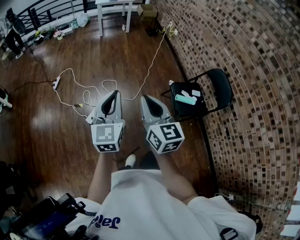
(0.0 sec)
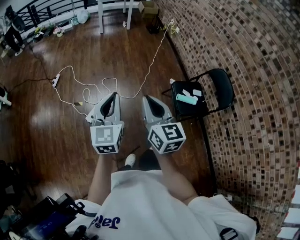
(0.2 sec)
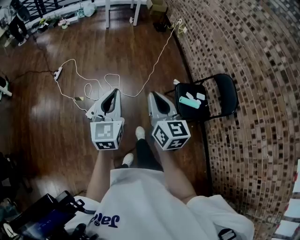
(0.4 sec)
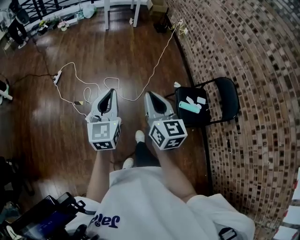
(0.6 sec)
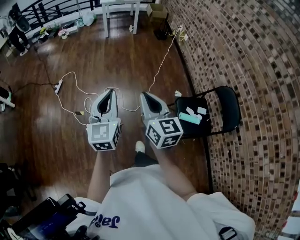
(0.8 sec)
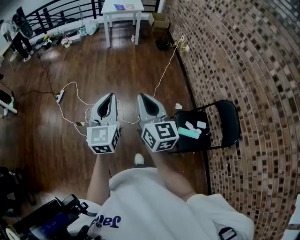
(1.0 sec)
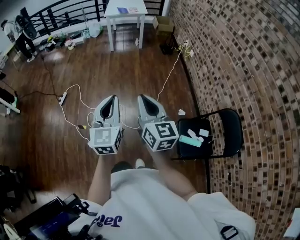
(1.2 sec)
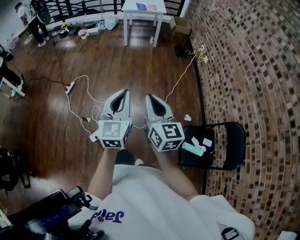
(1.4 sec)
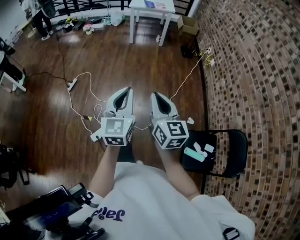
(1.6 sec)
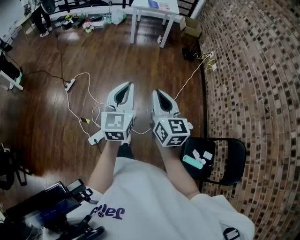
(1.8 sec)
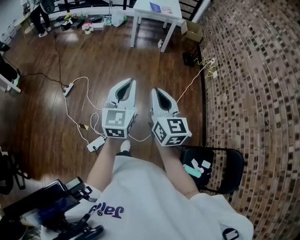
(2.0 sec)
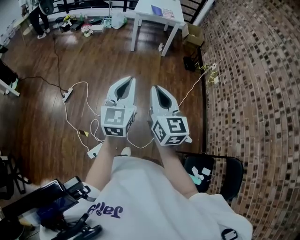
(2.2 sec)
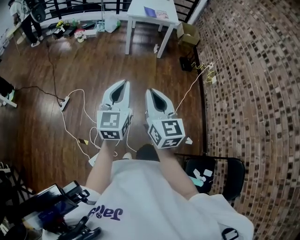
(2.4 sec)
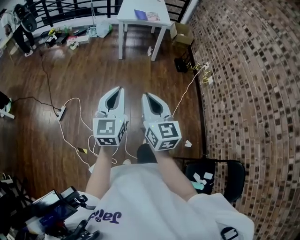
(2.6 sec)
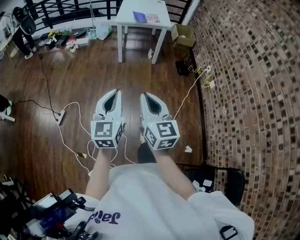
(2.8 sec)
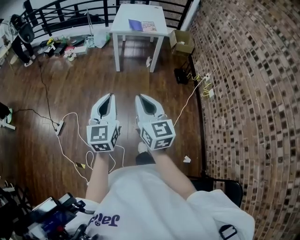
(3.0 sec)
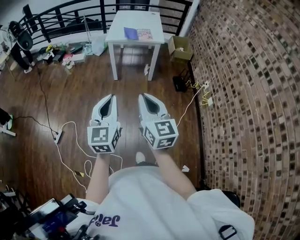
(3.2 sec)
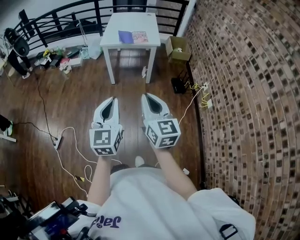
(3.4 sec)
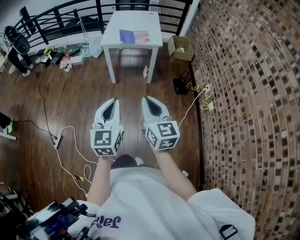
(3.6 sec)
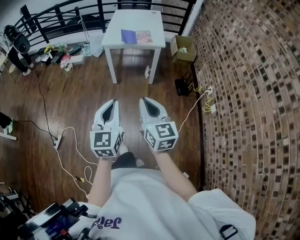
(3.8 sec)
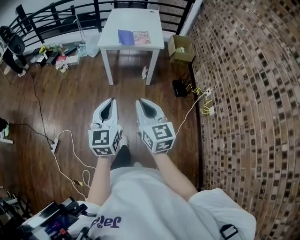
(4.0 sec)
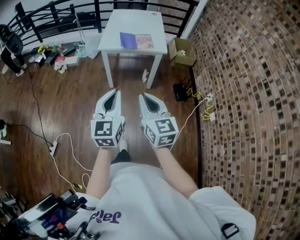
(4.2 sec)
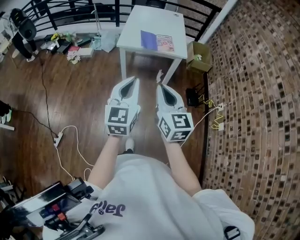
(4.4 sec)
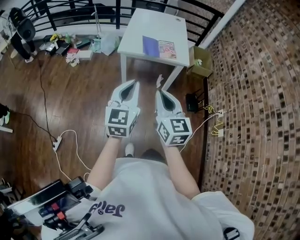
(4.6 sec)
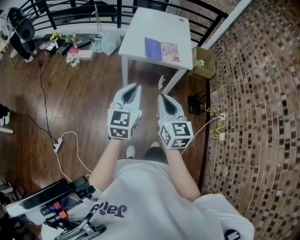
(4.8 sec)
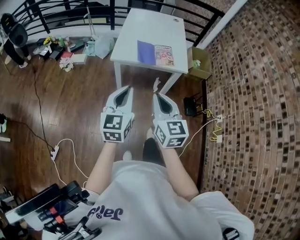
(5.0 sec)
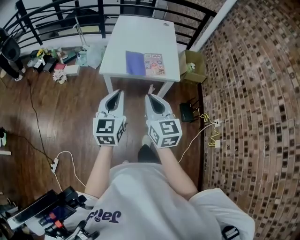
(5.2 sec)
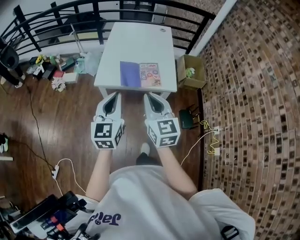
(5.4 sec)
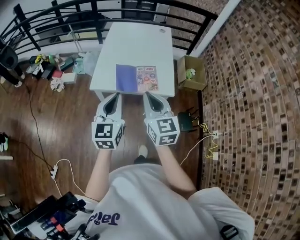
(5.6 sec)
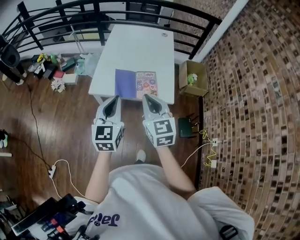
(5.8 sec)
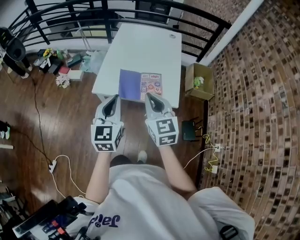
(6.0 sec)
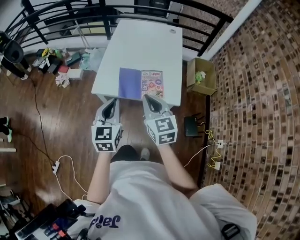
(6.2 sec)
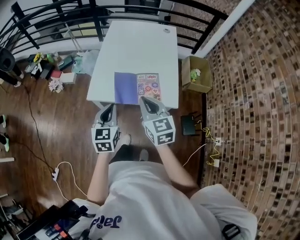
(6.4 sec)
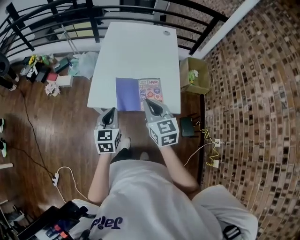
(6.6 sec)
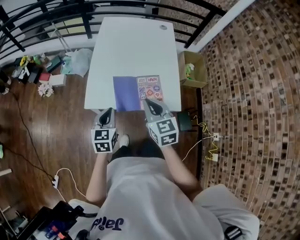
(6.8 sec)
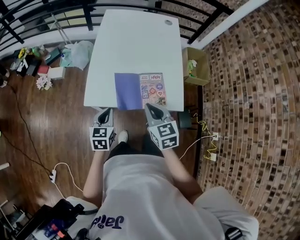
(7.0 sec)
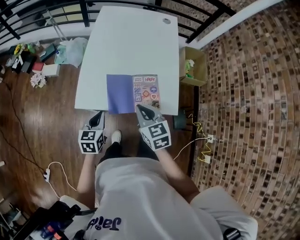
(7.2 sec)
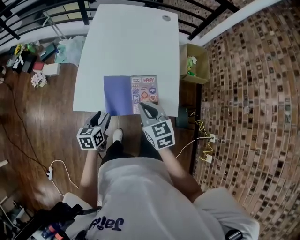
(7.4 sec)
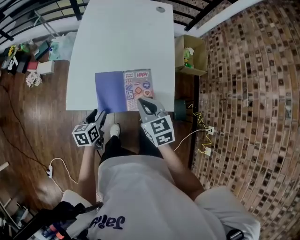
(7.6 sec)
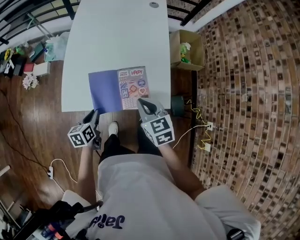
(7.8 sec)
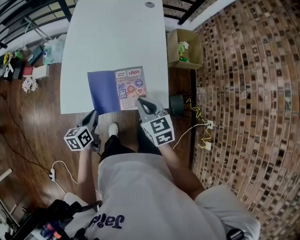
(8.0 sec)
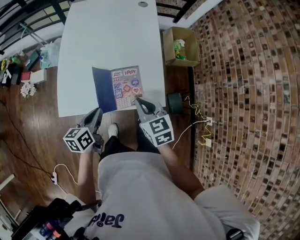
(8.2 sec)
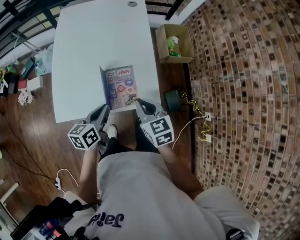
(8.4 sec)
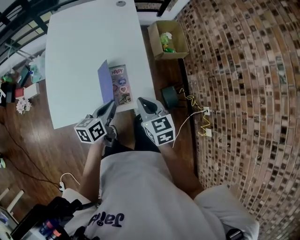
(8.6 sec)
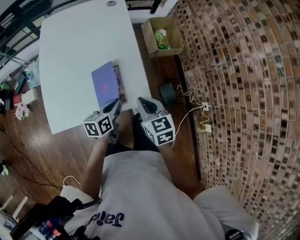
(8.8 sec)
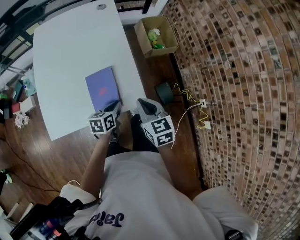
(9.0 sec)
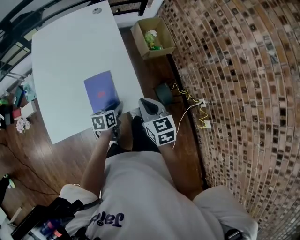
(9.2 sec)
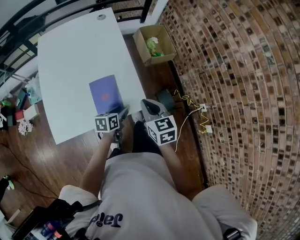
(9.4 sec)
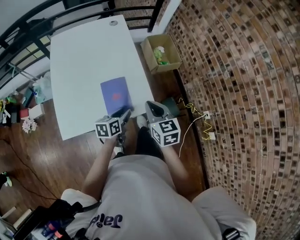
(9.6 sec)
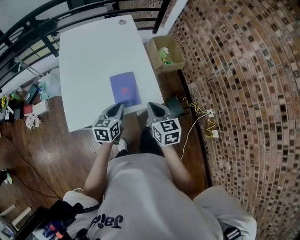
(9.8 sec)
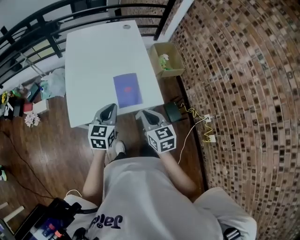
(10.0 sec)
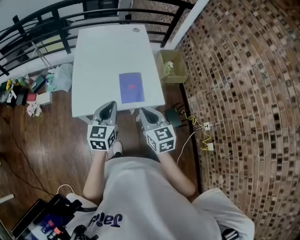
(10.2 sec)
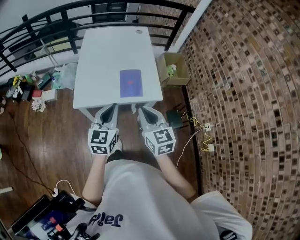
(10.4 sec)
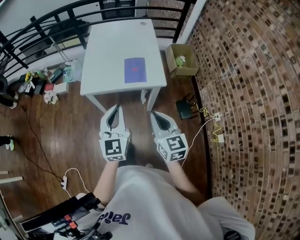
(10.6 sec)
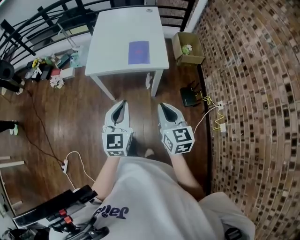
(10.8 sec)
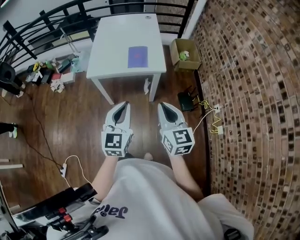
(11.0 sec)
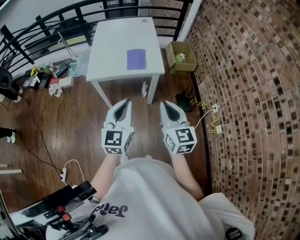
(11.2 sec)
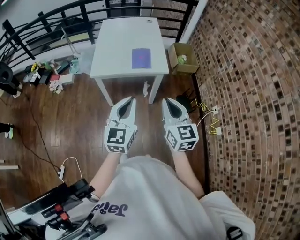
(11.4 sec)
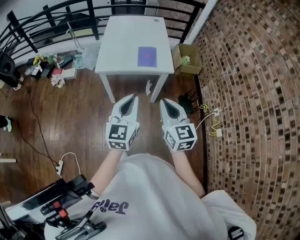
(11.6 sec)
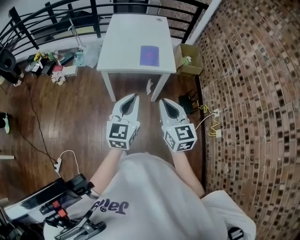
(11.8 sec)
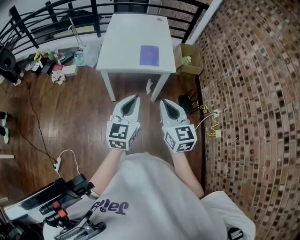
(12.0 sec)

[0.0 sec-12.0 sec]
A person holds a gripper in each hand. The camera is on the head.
0.0 sec to 1.6 sec: The two grippers go roughly 40 cm forward.
1.6 sec to 3.0 sec: Both grippers are carried forward, about 50 cm.
3.0 sec to 4.4 sec: Both grippers are carried forward, roughly 40 cm.
4.4 sec to 6.0 sec: The grippers both shift forward by roughly 40 cm.
6.0 sec to 7.6 sec: The two grippers go some 25 cm downward and forward. The right gripper turns by roughly 20 degrees. The left gripper angles its fingers downward, by about 30 degrees, and opens up.
7.6 sec to 9.0 sec: The left gripper goes upward and returns, some 10 cm each way, swivels about 30 degrees, and closes. Meanwhile the right gripper changes place by about 15 cm, and swivels approximately 20 degrees.
9.0 sec to 10.4 sec: The right gripper goes approximately 25 cm backward, upward and to the left, and changes its angle by approximately 20 degrees. Meanwhile the left gripper moves upward, backward and to the left, some 35 cm, swivels approximately 50 degrees, and opens, then closes once more.
10.4 sec to 12.0 sec: Both grippers travel together backward, some 25 cm.

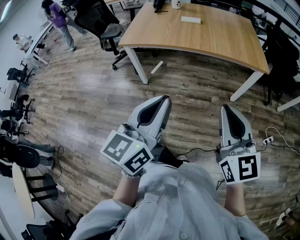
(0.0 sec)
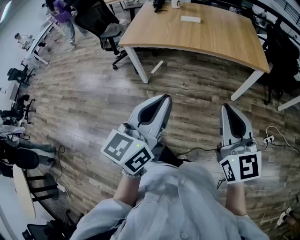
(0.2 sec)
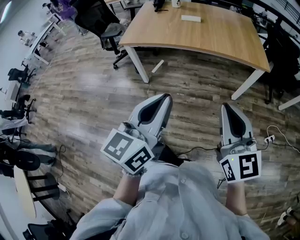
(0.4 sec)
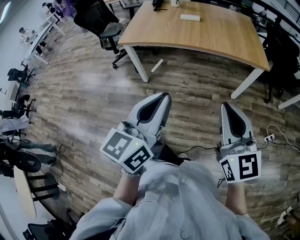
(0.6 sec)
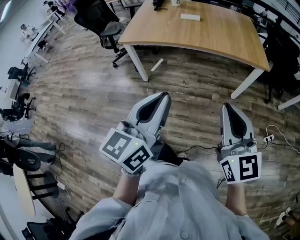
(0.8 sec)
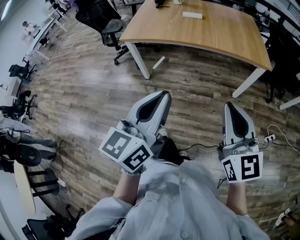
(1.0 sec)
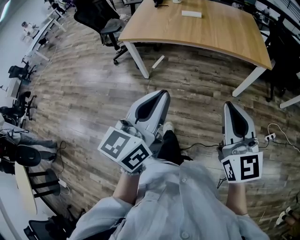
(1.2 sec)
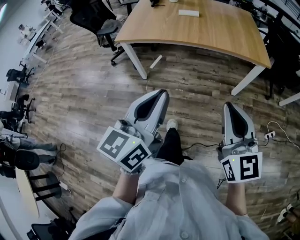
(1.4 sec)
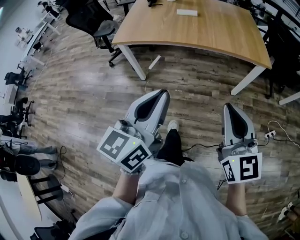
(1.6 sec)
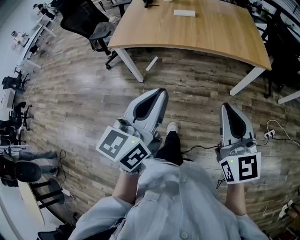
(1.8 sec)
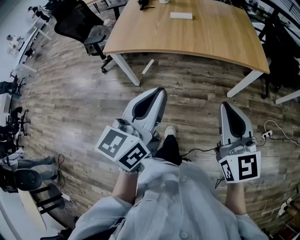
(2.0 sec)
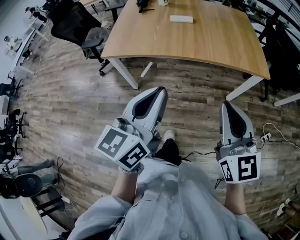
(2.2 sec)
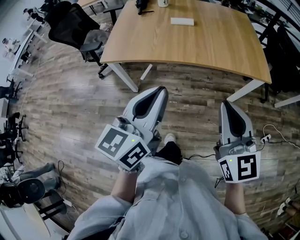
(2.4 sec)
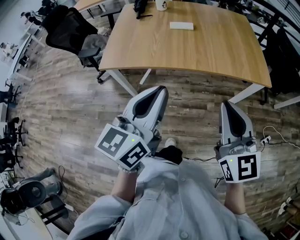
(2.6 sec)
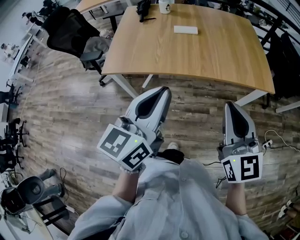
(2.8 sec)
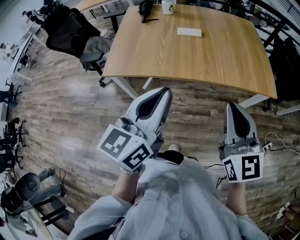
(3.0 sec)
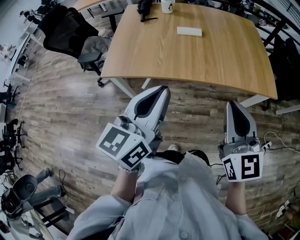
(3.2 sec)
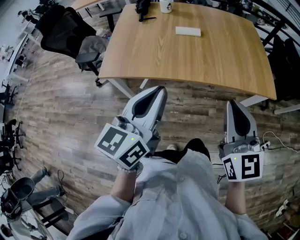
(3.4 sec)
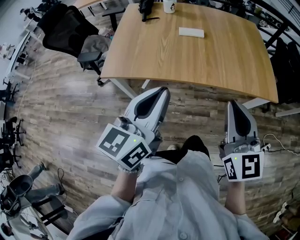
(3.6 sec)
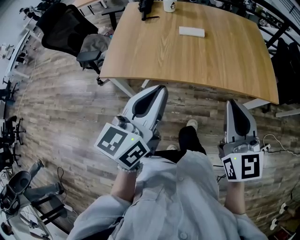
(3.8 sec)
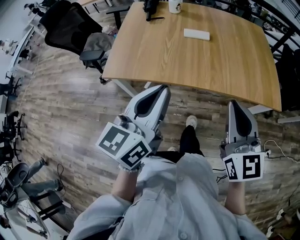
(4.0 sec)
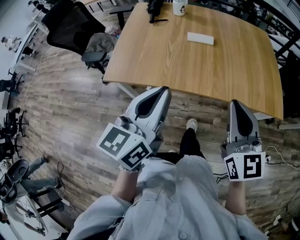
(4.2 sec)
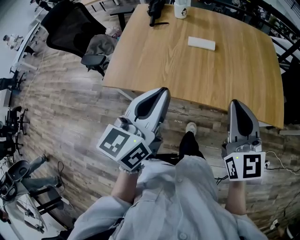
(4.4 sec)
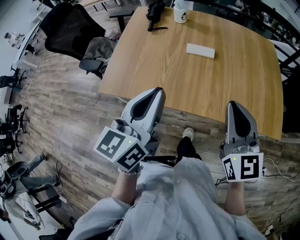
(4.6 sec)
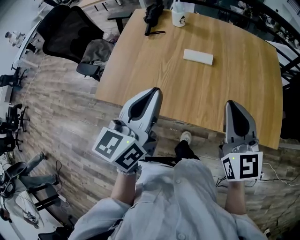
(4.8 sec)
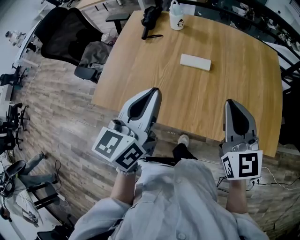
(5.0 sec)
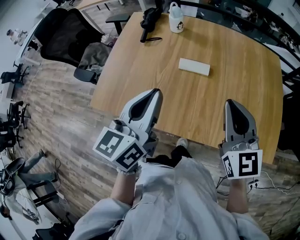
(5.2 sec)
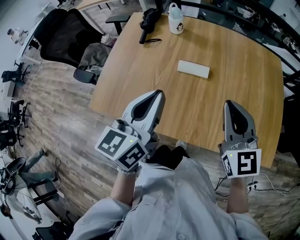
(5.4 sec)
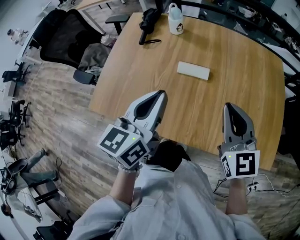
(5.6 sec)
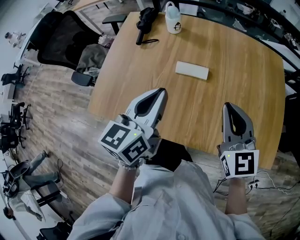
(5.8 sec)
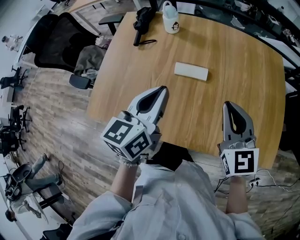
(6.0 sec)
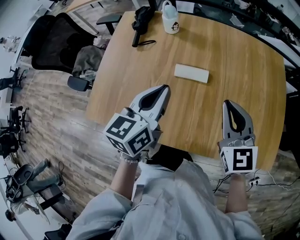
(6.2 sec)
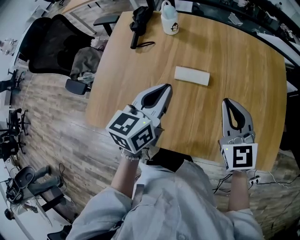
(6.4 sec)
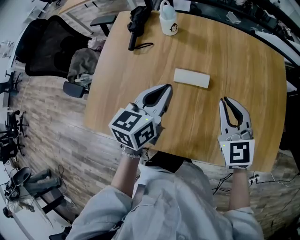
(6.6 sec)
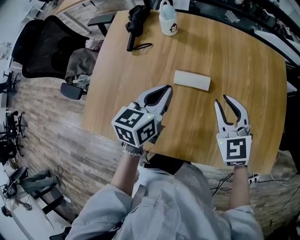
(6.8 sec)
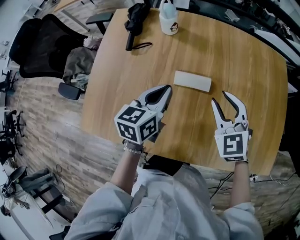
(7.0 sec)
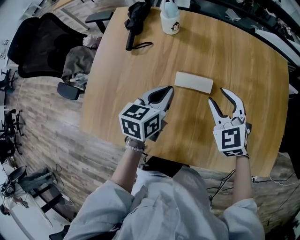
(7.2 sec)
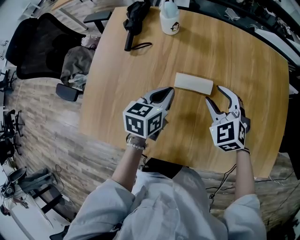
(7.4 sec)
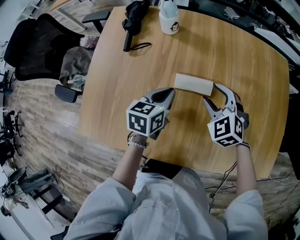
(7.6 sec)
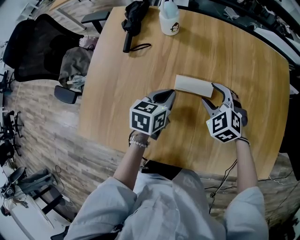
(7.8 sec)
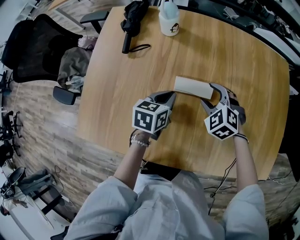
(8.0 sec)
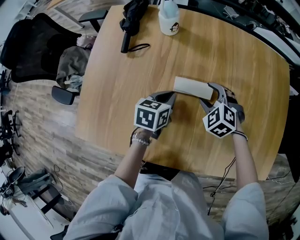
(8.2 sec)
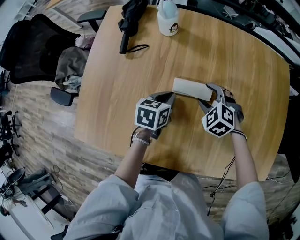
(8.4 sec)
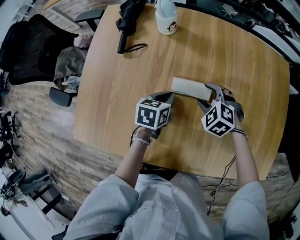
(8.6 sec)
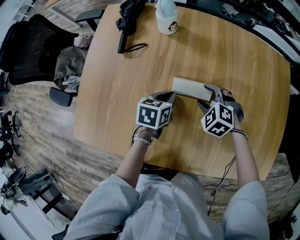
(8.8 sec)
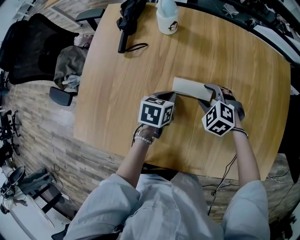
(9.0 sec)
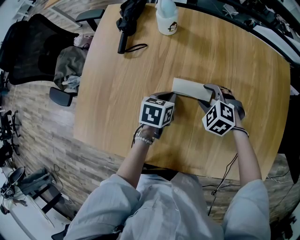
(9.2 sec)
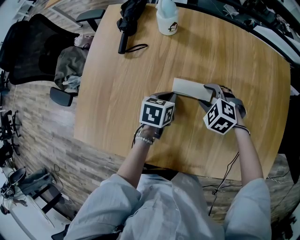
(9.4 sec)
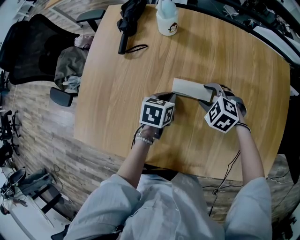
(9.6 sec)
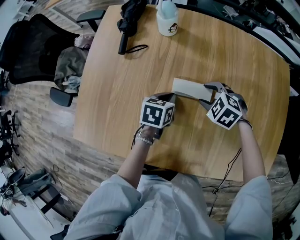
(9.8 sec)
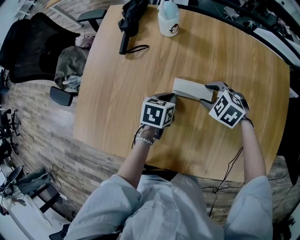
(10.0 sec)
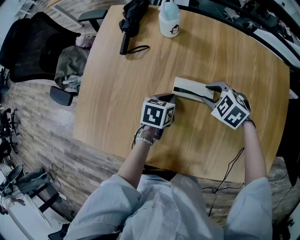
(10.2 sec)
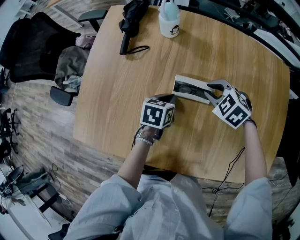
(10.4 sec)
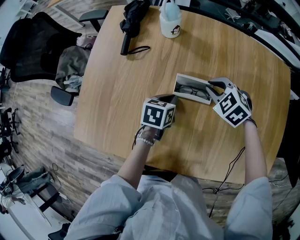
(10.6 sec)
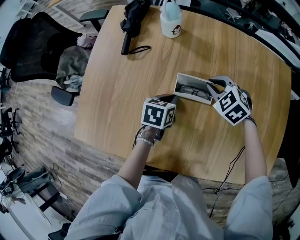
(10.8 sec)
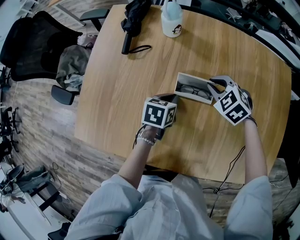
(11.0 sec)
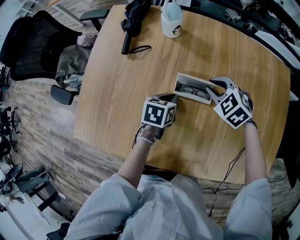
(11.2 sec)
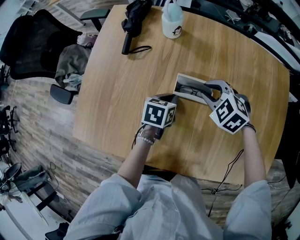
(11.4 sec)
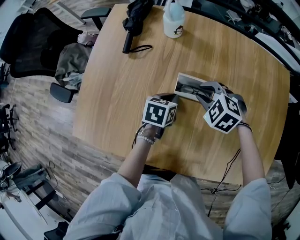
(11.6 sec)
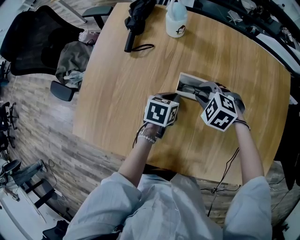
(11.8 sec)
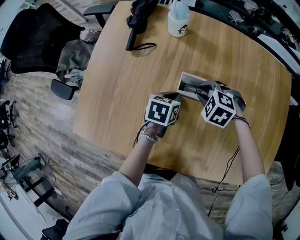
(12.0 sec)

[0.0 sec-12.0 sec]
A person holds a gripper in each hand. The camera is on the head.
0.0 sec to 1.6 sec: There are only small adjustments of the grippers.
1.6 sec to 3.0 sec: Both grippers travel together forward, roughly 25 cm.
3.0 sec to 4.4 sec: Both grippers move forward, about 15 cm.
4.4 sec to 6.0 sec: Both grippers travel together forward, some 25 cm.
6.0 sec to 7.6 sec: The left gripper moves downward and forward, some 25 cm, and rotates approximately 20 degrees. Meanwhile the right gripper heads downward, forward and to the left, covering approximately 25 cm, angles its fingers downward, by about 30 degrees, and opens.
7.6 sec to 9.0 sec: The two grippers go about 10 cm downward. The right gripper changes its angle by some 20 degrees.
9.0 sec to 10.4 sec: The right gripper changes place by about 5 cm, and closes.
10.4 sec to 12.0 sec: The right gripper moves roughly 5 cm.
